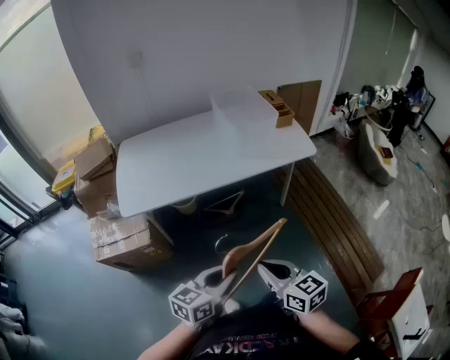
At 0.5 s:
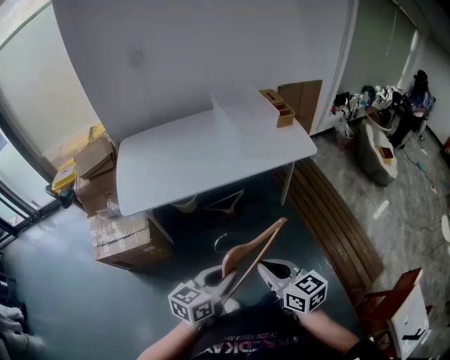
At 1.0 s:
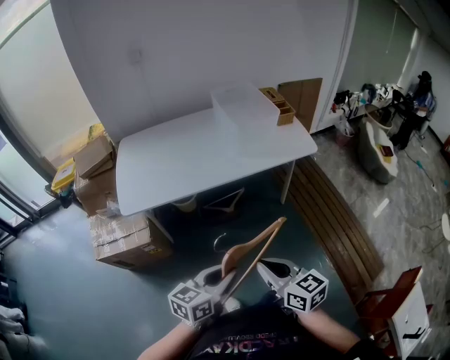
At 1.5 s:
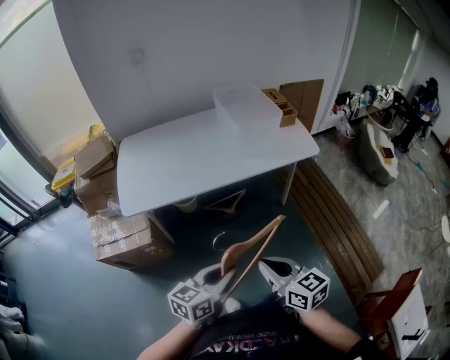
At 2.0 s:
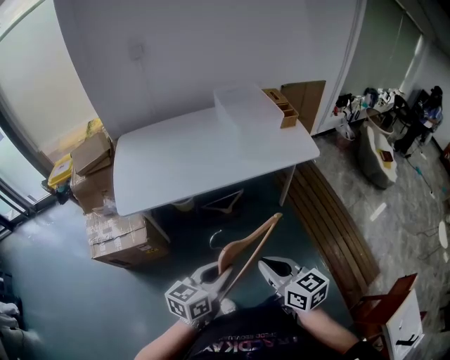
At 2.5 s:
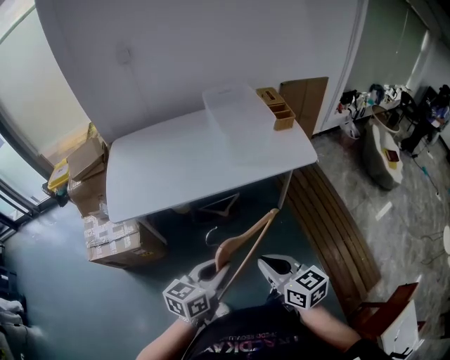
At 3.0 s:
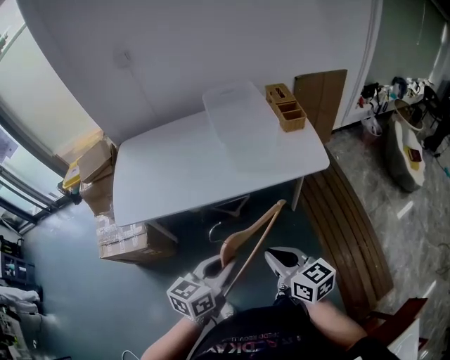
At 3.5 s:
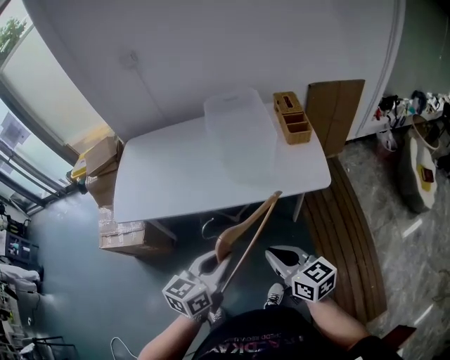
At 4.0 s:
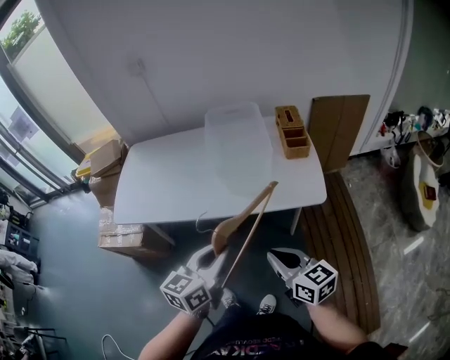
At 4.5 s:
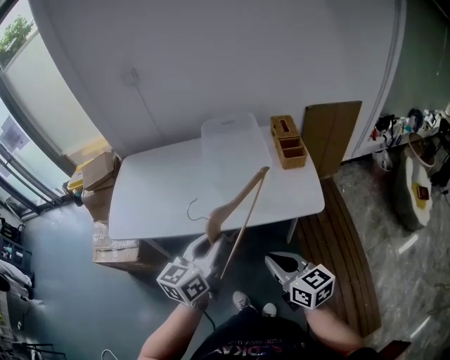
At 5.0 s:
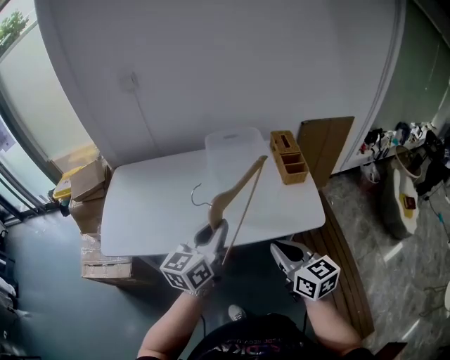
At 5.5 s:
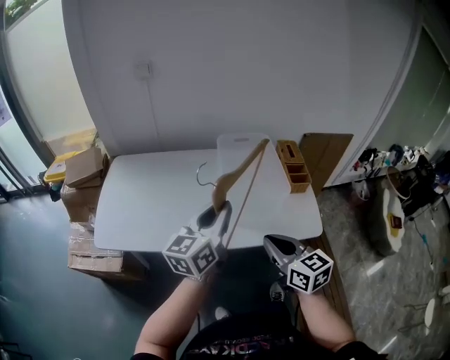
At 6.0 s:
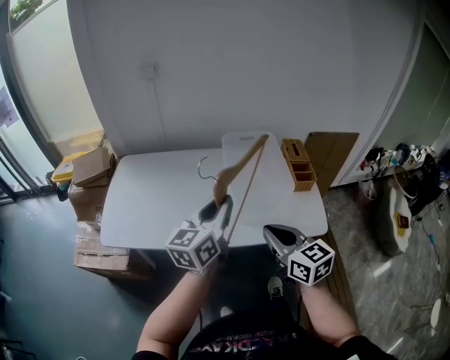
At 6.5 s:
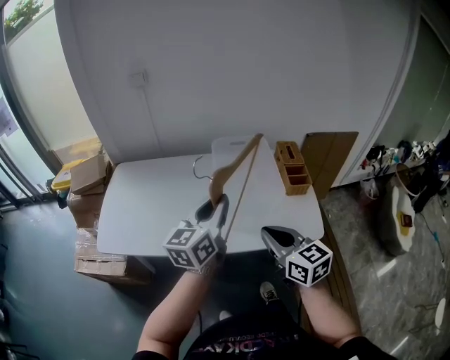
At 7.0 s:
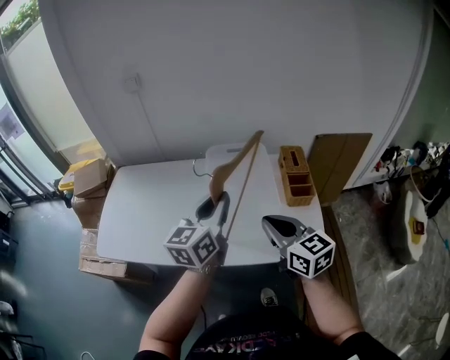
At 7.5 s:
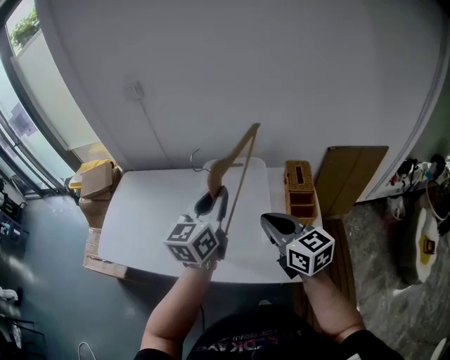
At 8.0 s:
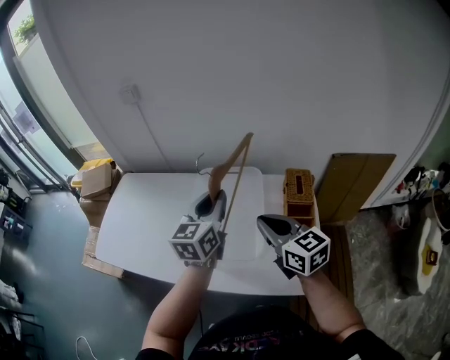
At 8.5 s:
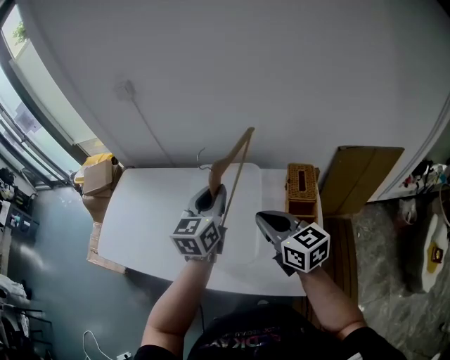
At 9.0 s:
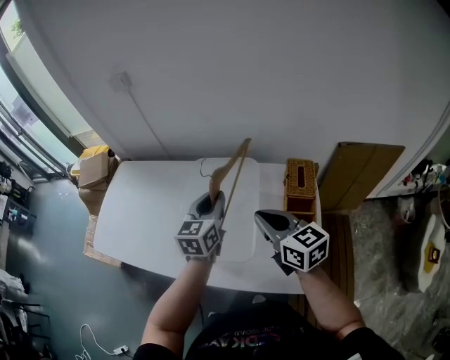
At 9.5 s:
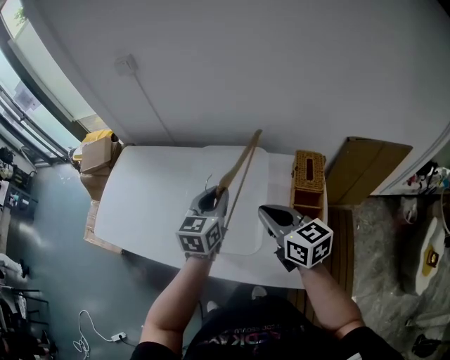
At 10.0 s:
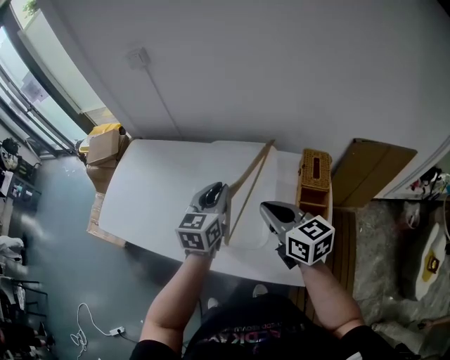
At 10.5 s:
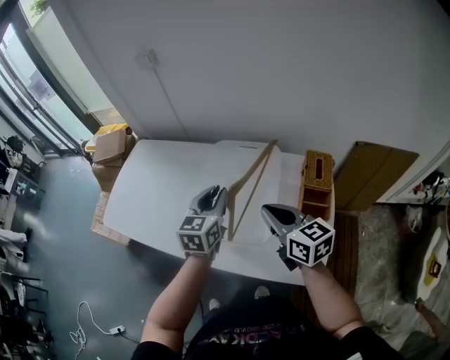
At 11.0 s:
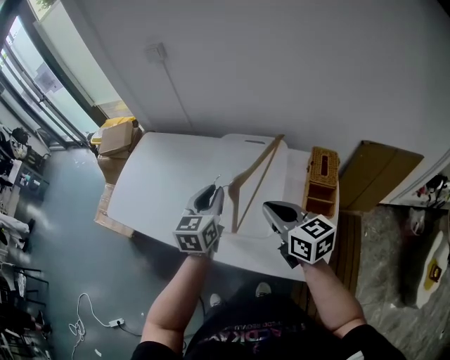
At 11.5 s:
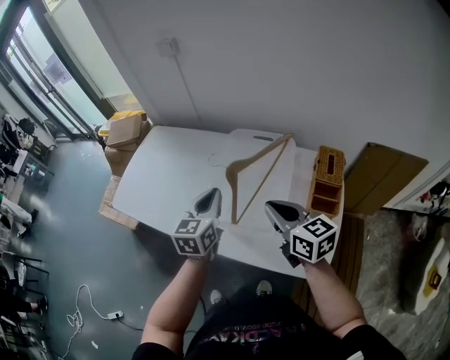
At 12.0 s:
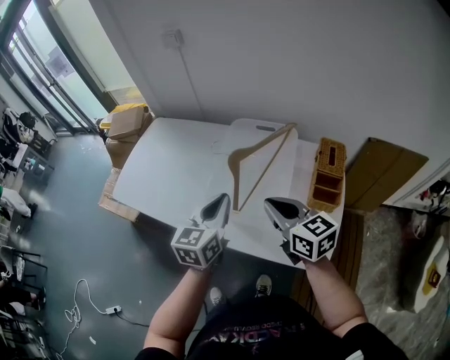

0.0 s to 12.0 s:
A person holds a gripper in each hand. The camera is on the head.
0.0 to 2.0 s: The grippers stay close to where they were, moving slightly.
2.0 to 4.0 s: The two grippers go about 35 cm to the right and forward. The left gripper turns by about 20 degrees.
4.0 to 6.0 s: The right gripper goes approximately 25 cm forward, to the left and upward. Meanwhile the left gripper goes approximately 25 cm forward and to the left.
6.0 to 8.0 s: The grippers both shift forward and to the right by roughly 30 cm. The left gripper swivels roughly 20 degrees.
8.0 to 10.0 s: The left gripper is displaced downward by about 10 cm. The right gripper changes place by about 5 cm.
10.0 to 12.0 s: The left gripper shifts roughly 15 cm backward and to the left. The right gripper moves backward and to the left, approximately 10 cm.

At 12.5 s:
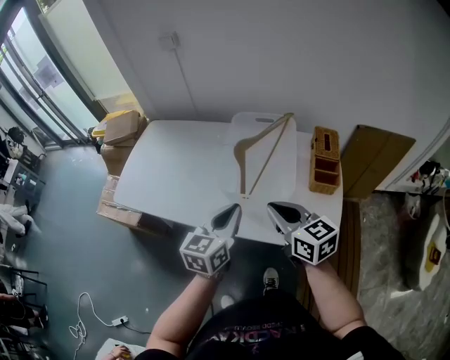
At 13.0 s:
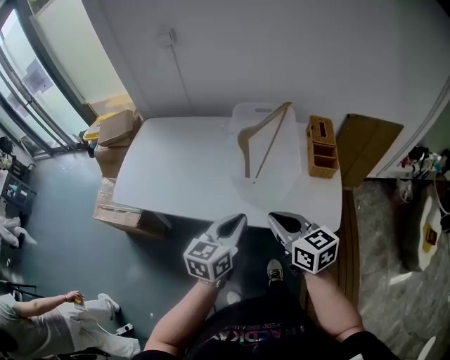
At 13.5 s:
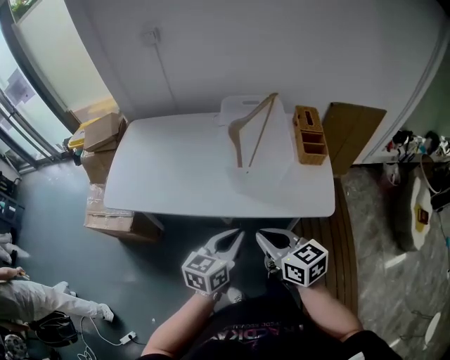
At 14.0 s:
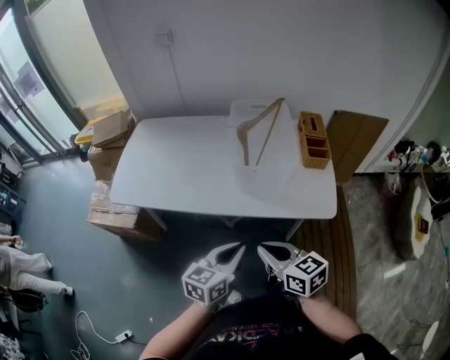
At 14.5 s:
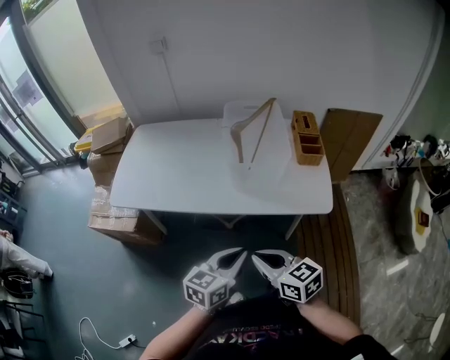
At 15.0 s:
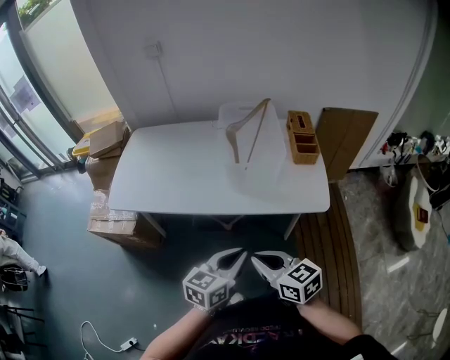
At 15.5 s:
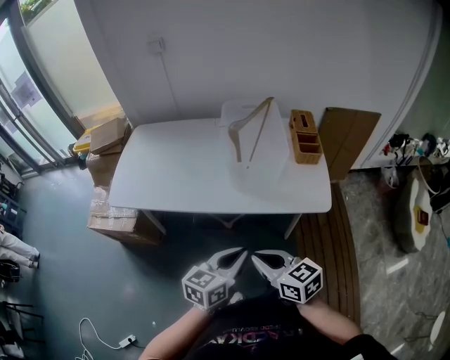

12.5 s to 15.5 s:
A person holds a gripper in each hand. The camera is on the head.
12.5 to 14.0 s: Both grippers move backward and to the left, about 20 cm.
14.0 to 15.5 s: The right gripper moves backward, some 5 cm.

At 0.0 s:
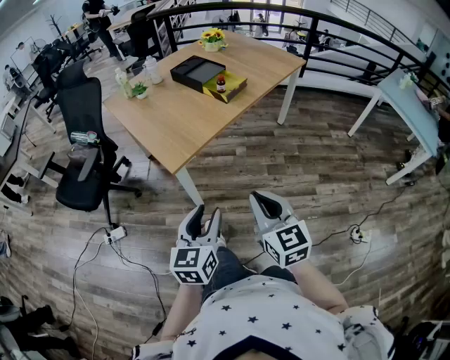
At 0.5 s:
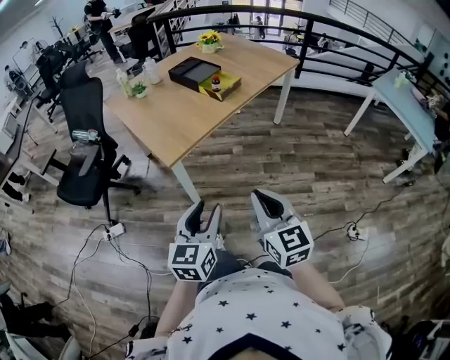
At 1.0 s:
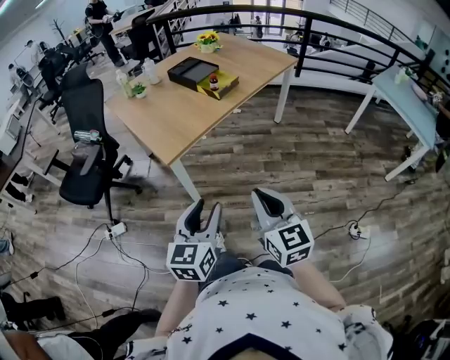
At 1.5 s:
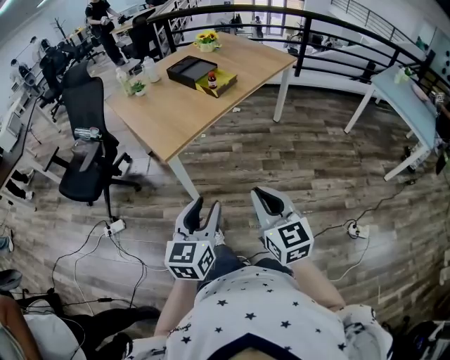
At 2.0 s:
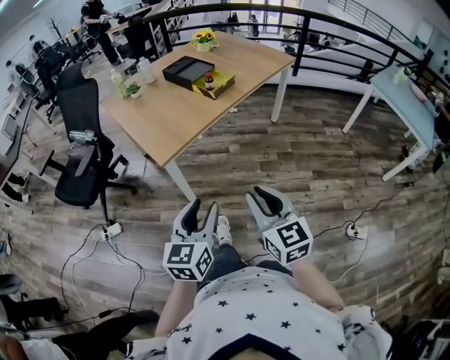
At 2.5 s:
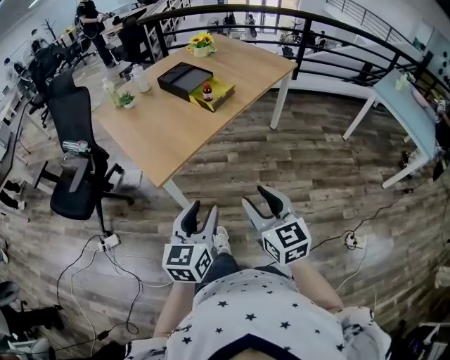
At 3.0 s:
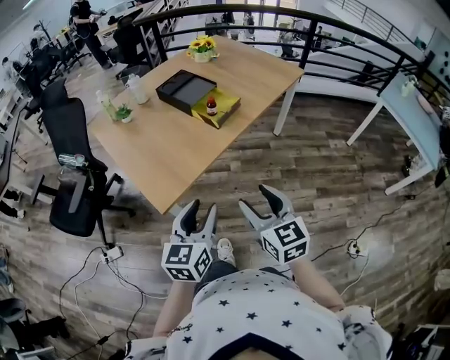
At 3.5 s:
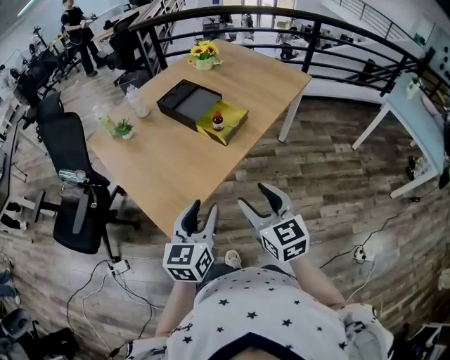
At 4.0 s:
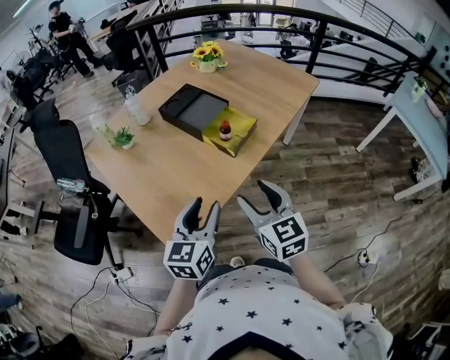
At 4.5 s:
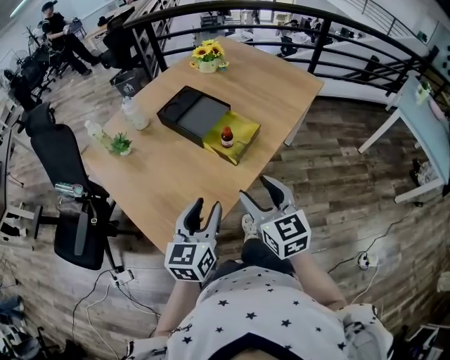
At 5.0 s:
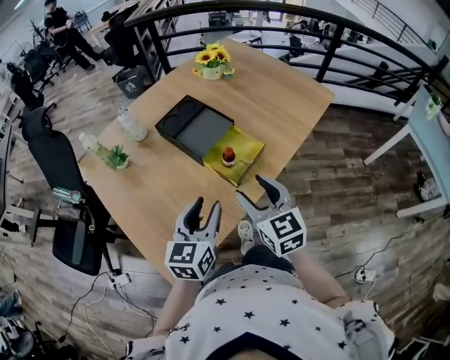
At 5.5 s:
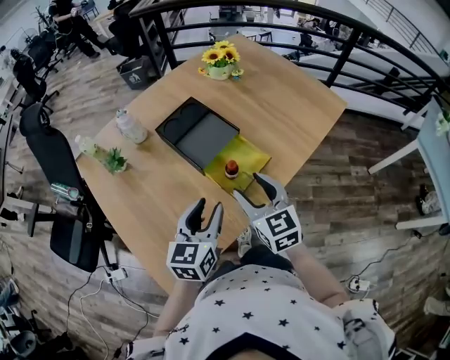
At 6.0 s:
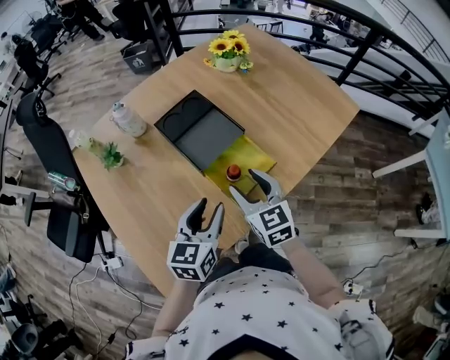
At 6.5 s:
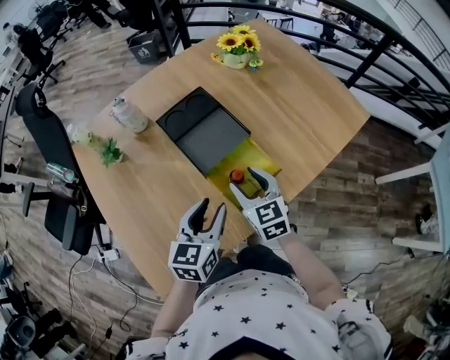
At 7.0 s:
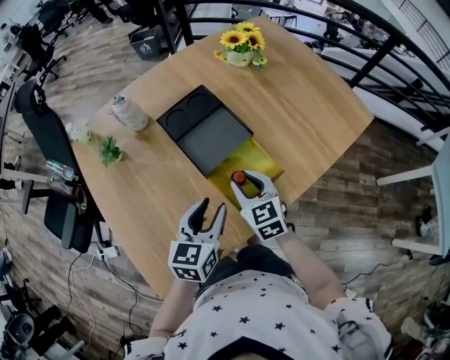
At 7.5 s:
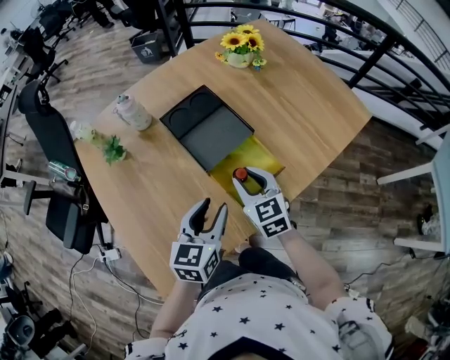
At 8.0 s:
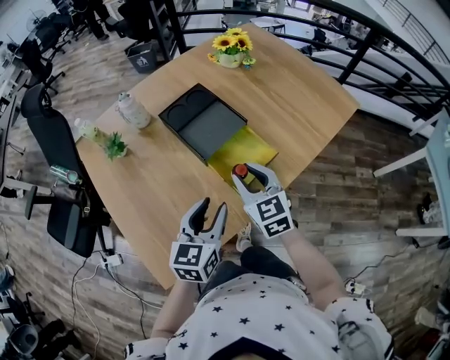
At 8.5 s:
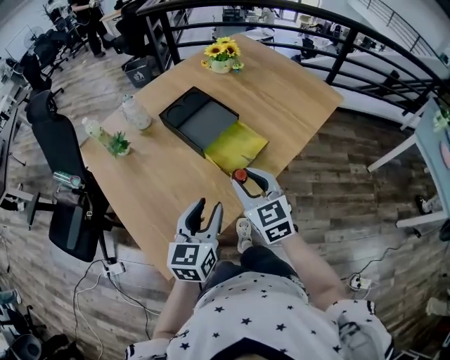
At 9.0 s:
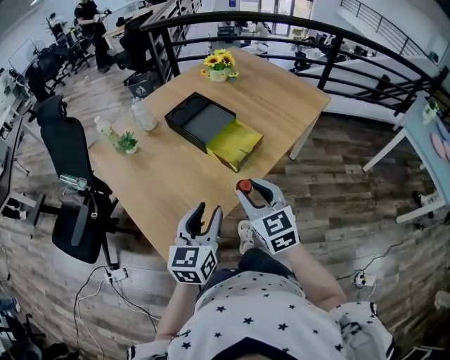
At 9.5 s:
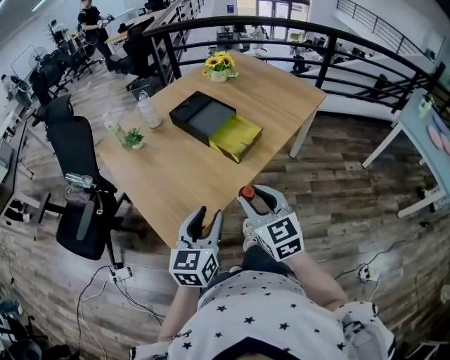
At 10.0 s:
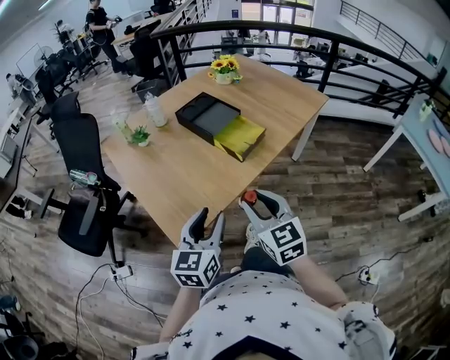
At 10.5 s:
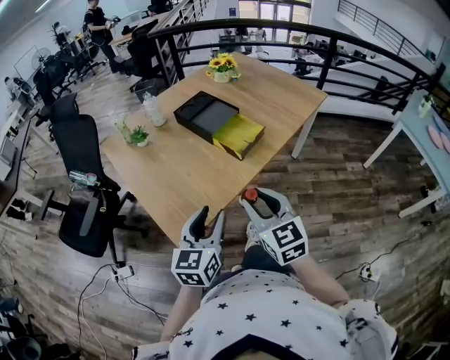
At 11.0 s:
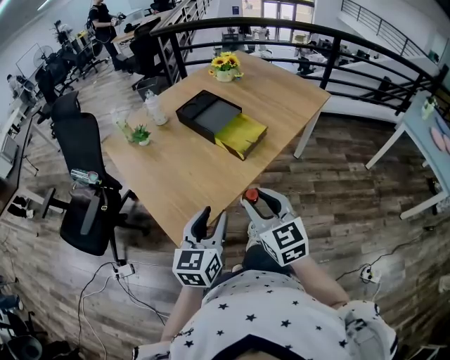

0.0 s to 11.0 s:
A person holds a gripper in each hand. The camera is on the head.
0.0 to 2.0 s: Both grippers move to the right, some 5 cm.
2.0 to 3.5 s: The two grippers go about 30 cm forward. The right gripper opens.
3.5 to 5.5 s: The two grippers go about 30 cm forward.
5.5 to 7.5 s: The left gripper shifts by some 5 cm. Meanwhile the right gripper heads forward and downward, covering approximately 10 cm, and closes up.
7.5 to 9.0 s: The right gripper goes approximately 25 cm backward and upward. Meanwhile the left gripper shifts approximately 20 cm backward.
9.0 to 11.0 s: The two grippers go some 10 cm backward.

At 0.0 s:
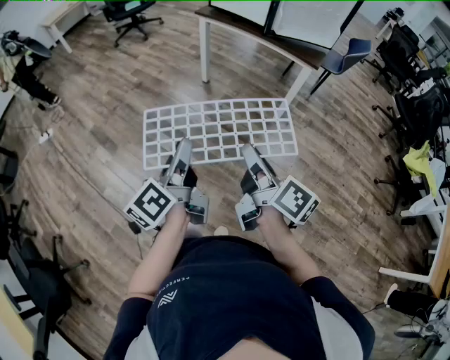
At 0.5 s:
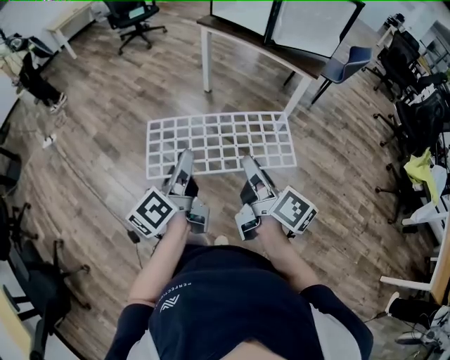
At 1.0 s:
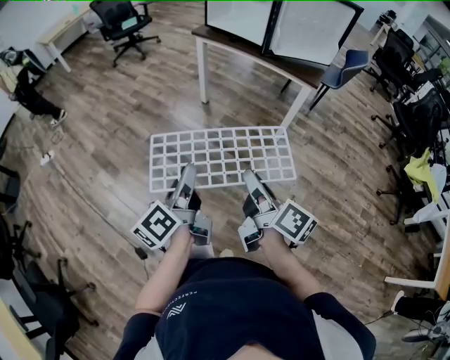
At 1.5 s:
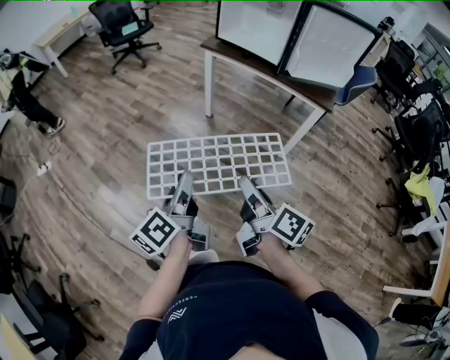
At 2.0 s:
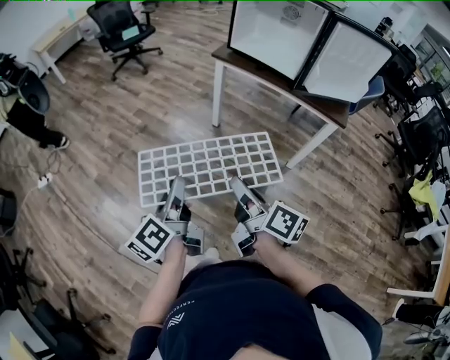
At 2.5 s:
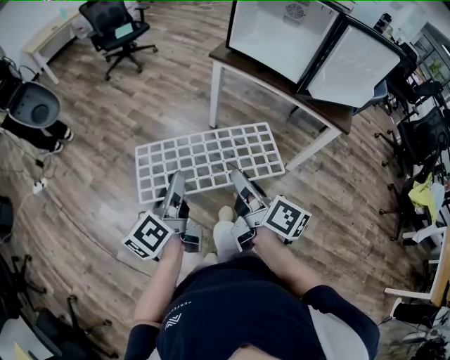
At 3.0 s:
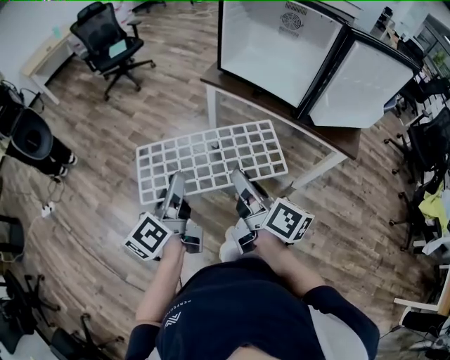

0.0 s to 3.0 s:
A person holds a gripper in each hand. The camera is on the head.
0.0 to 1.5 s: Both grippers travel together forward and to the left, roughly 15 cm.
1.5 to 3.0 s: The two grippers go roughly 30 cm forward.
